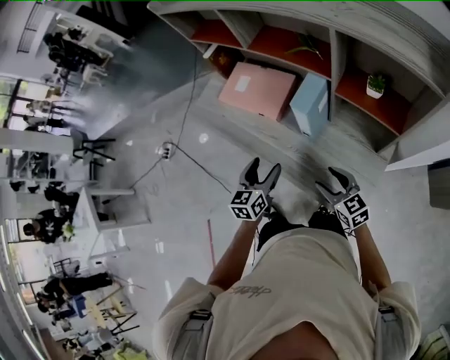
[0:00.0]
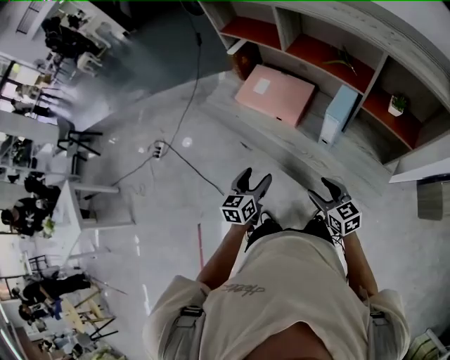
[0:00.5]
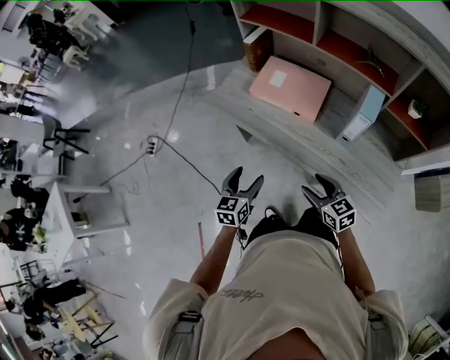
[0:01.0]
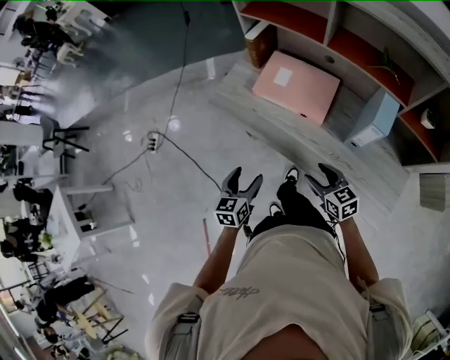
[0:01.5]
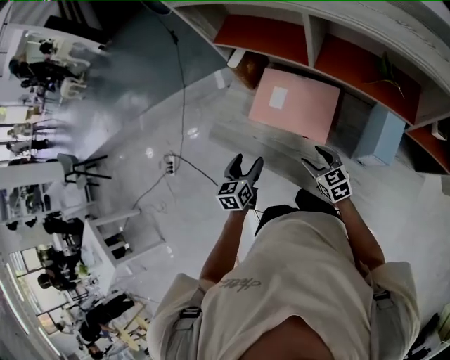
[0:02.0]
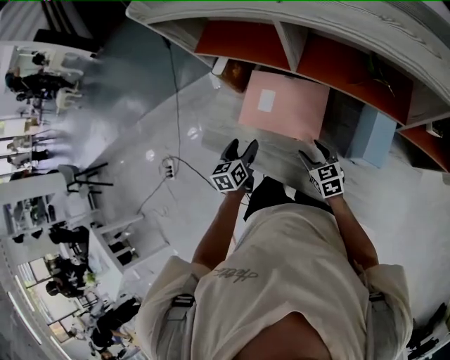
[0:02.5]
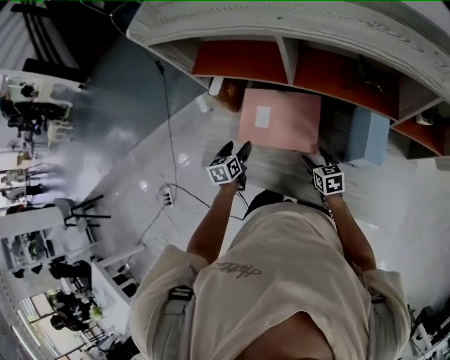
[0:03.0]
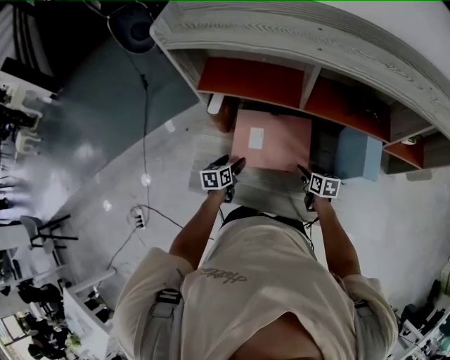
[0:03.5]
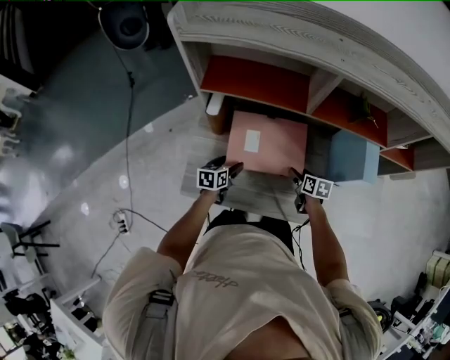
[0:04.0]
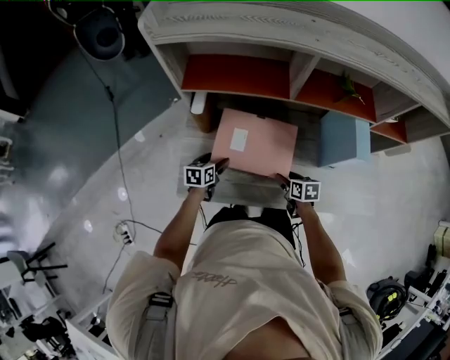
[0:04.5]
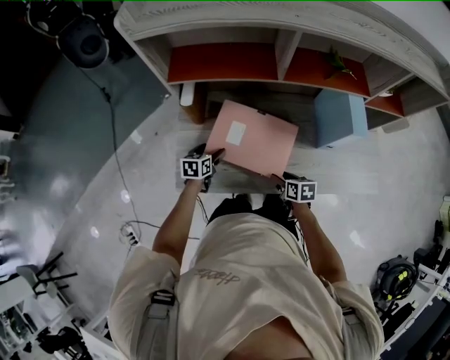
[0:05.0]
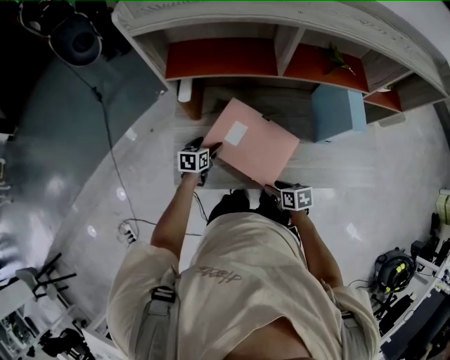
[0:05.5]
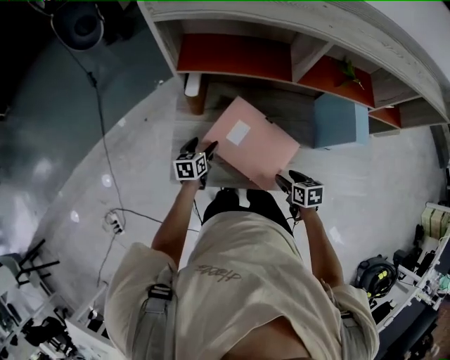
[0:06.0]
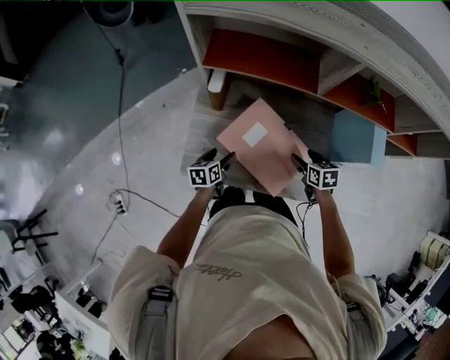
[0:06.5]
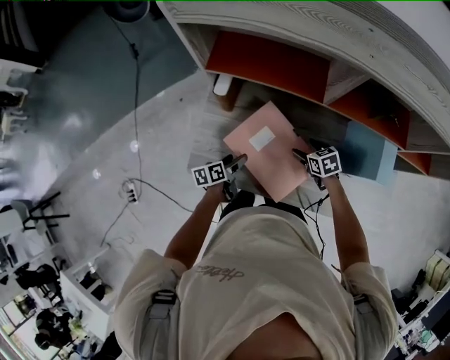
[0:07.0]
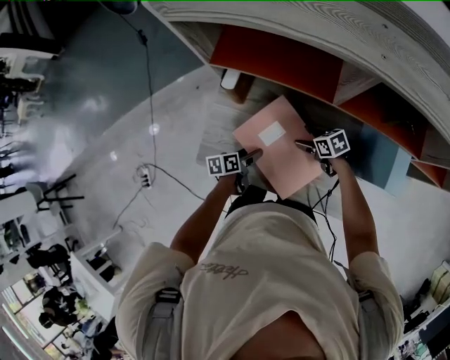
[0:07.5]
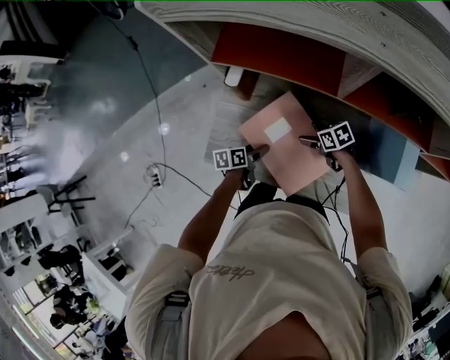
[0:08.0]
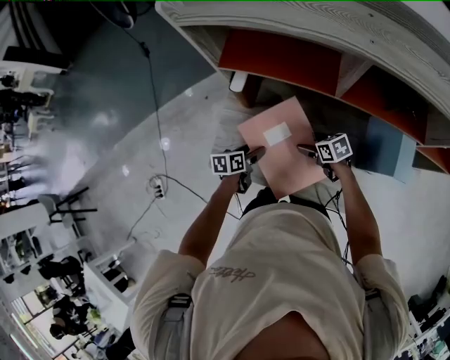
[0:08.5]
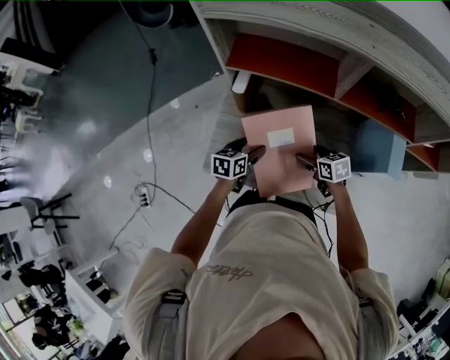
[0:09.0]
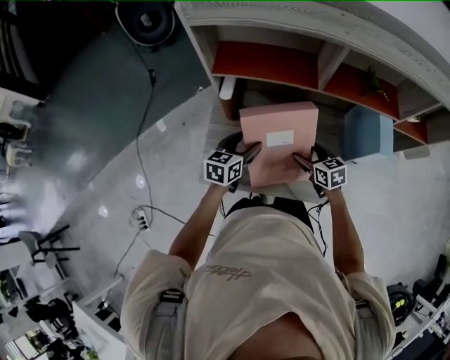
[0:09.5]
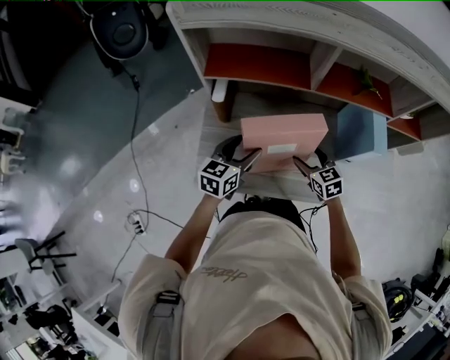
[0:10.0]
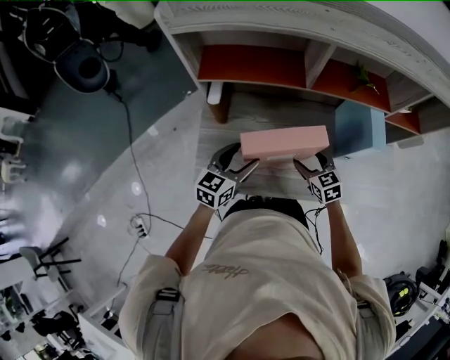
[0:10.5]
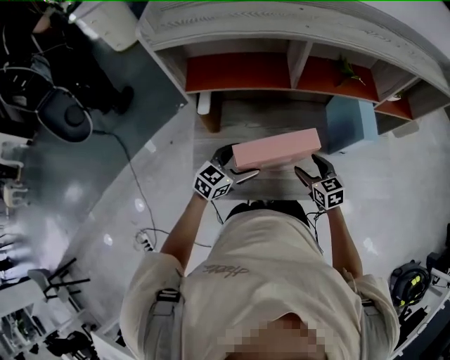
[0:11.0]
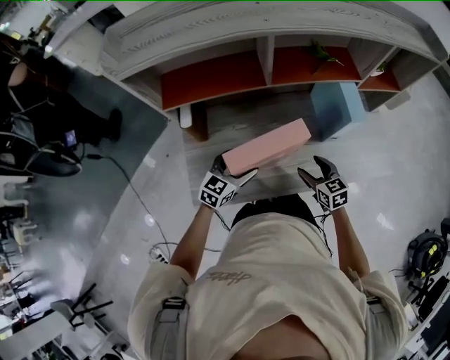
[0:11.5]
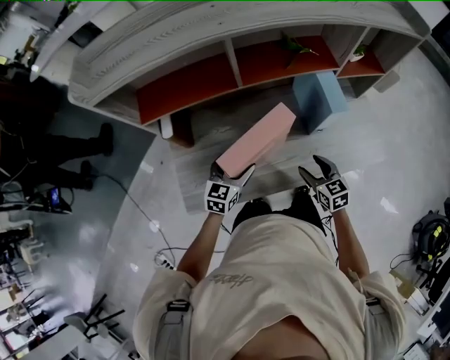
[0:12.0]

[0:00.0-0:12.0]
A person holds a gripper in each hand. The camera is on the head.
0:00.0 to 0:02.0: Both grippers move forward and to the left, some 30 cm.
0:02.0 to 0:04.0: The right gripper moves some 15 cm, and rolls clockwise, seen from behind, by approximately 50 degrees. Meanwhile the left gripper shifts by approximately 20 cm, and rotates approximately 40 degrees.
0:04.0 to 0:06.0: The right gripper heads backward, covering about 15 cm; the left gripper changes place by about 5 cm.
0:06.0 to 0:08.0: The right gripper goes approximately 20 cm forward, and rotates roughly 40 degrees. Meanwhile the left gripper travels backward by some 5 cm, and swivels approximately 30 degrees.
0:08.0 to 0:10.0: The right gripper is displaced upward by approximately 10 cm, and swivels some 40 degrees. The left gripper is displaced upward by some 20 cm, and twists some 50 degrees clockwise, seen from behind.
0:10.0 to 0:12.0: The right gripper goes some 15 cm to the right and backward, and swivels roughly 20 degrees. The left gripper heads to the right and downward, covering about 10 cm.

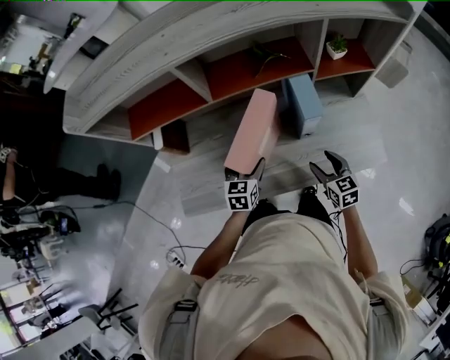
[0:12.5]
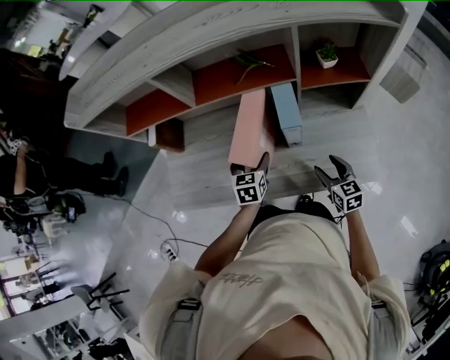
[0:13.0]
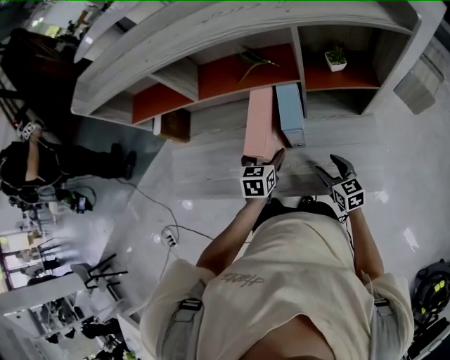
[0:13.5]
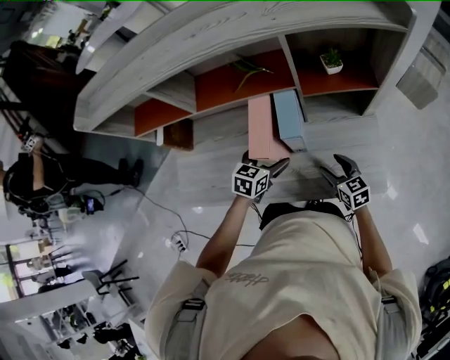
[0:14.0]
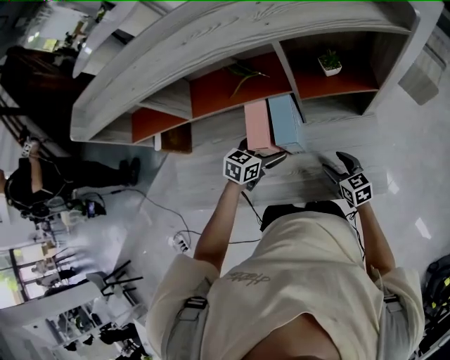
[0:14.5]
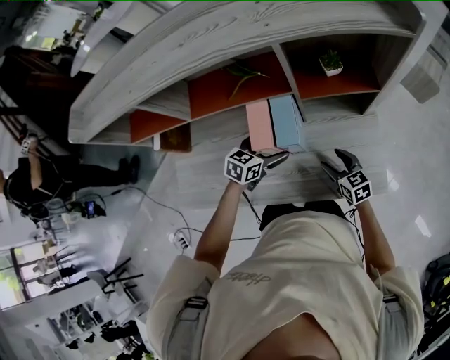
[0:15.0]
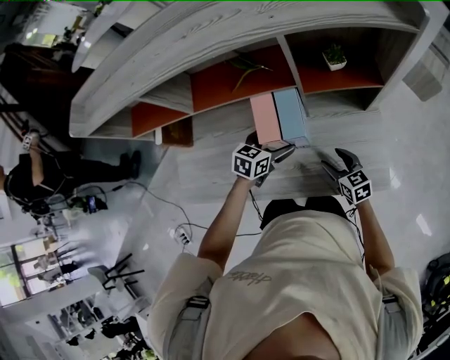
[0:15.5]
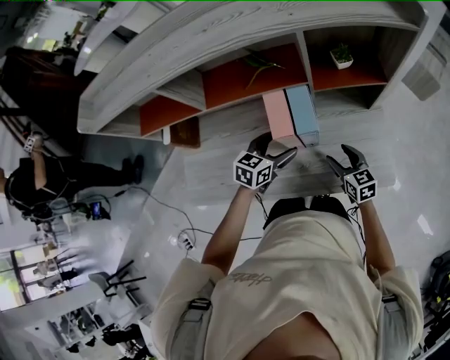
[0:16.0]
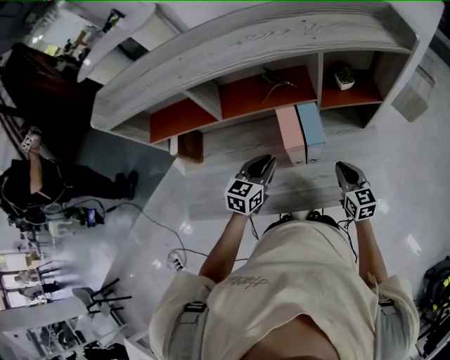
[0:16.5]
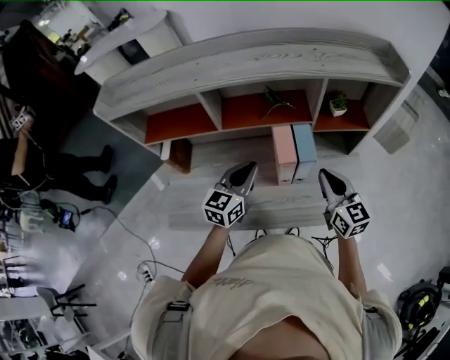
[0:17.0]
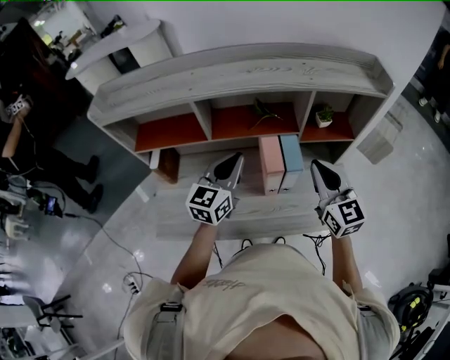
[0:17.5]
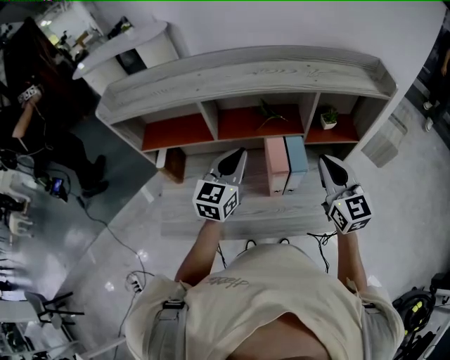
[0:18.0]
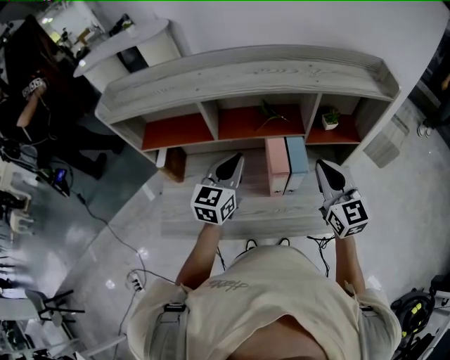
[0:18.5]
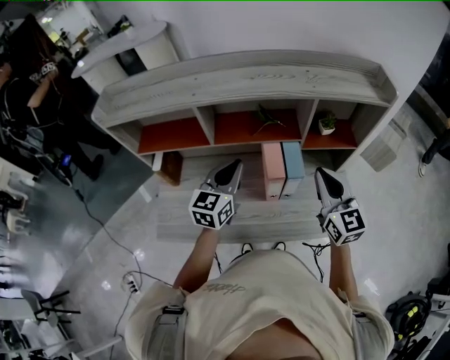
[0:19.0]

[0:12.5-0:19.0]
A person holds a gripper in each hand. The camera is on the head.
0:12.5 to 0:14.5: The grippers both shift to the right and forward by about 15 cm. The left gripper turns by approximately 20 degrees.
0:14.5 to 0:17.0: The left gripper moves upward and to the left, some 20 cm, turns by about 30 degrees, and closes its fingers, while the right gripper goes approximately 25 cm upward, rotates some 30 degrees, and closes its fingers.
0:17.0 to 0:19.0: The two grippers go some 5 cm upward.

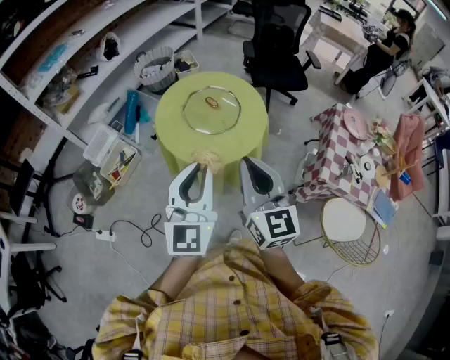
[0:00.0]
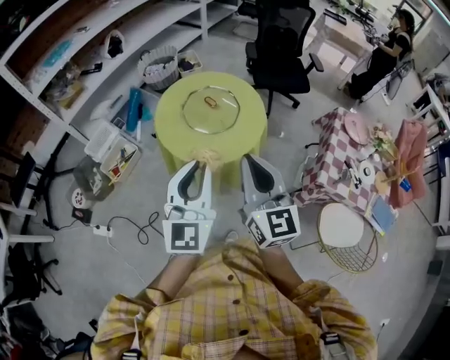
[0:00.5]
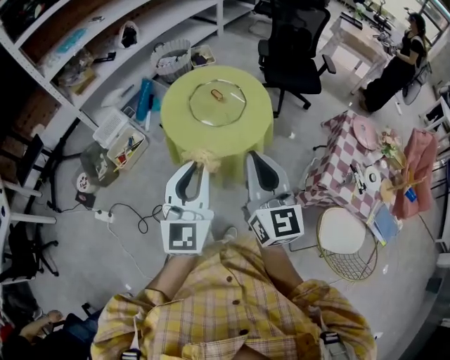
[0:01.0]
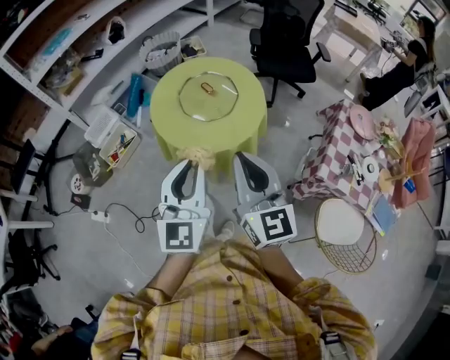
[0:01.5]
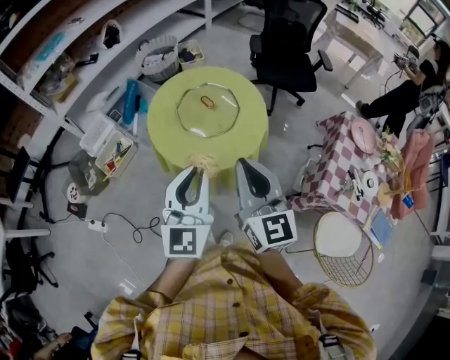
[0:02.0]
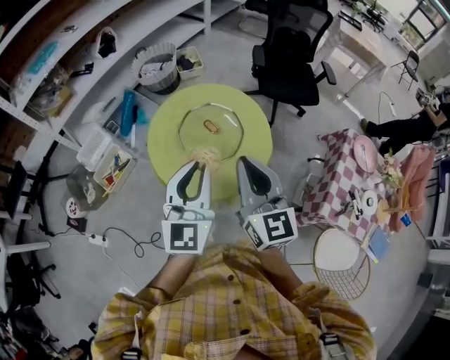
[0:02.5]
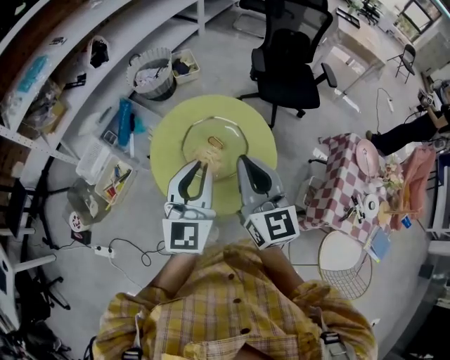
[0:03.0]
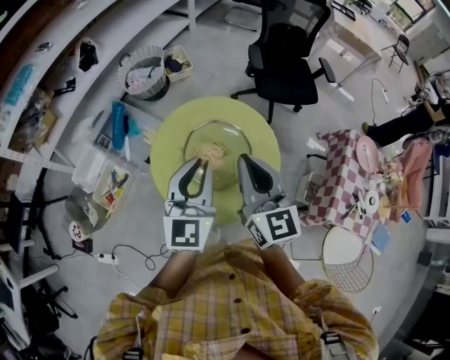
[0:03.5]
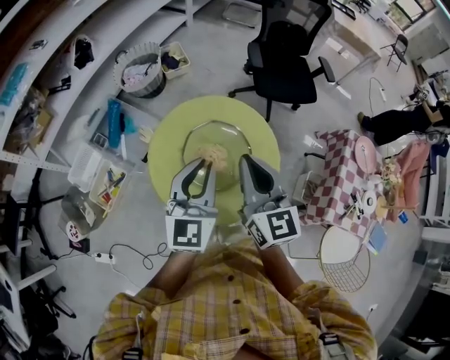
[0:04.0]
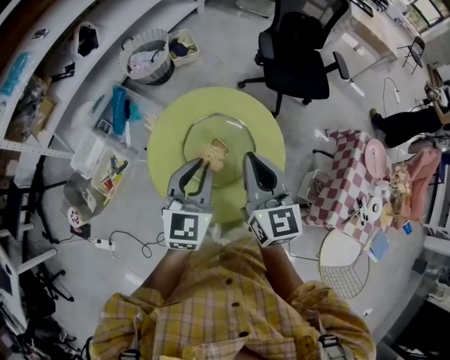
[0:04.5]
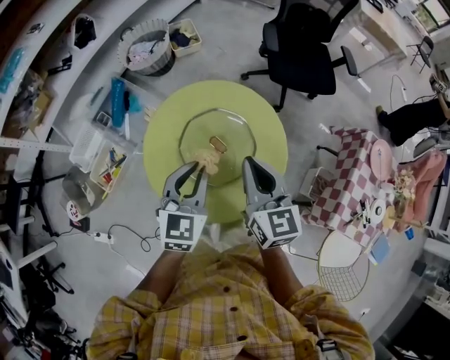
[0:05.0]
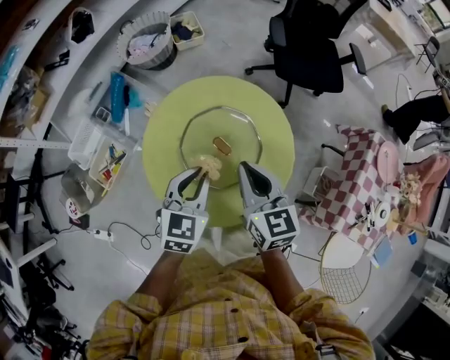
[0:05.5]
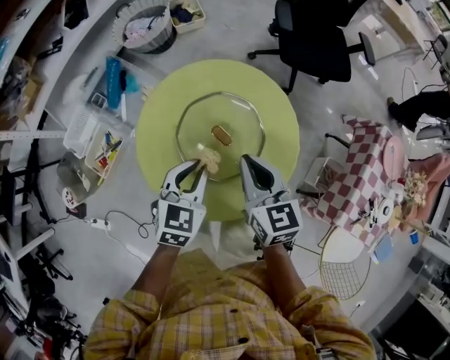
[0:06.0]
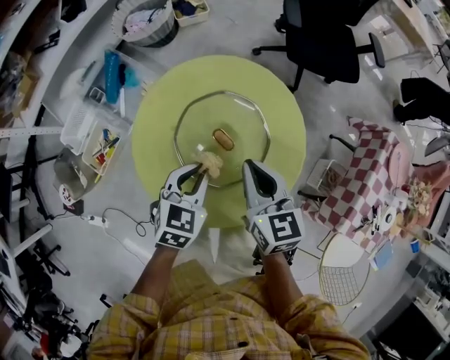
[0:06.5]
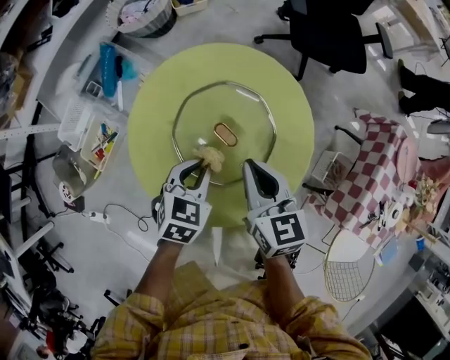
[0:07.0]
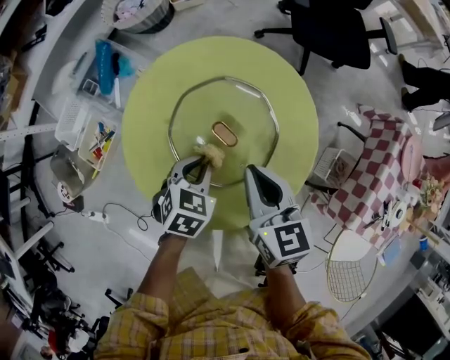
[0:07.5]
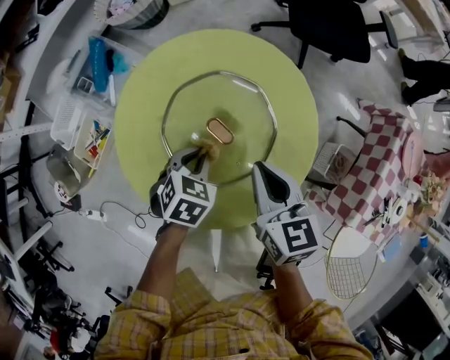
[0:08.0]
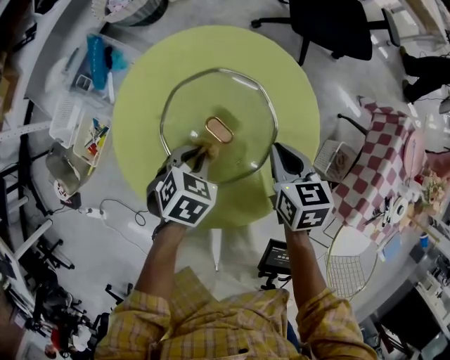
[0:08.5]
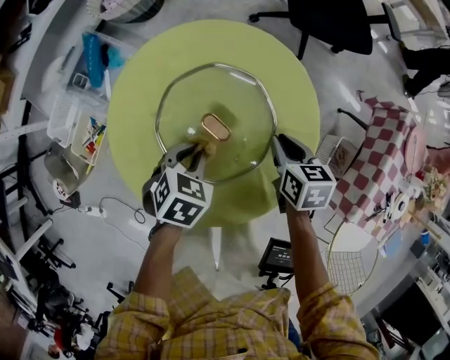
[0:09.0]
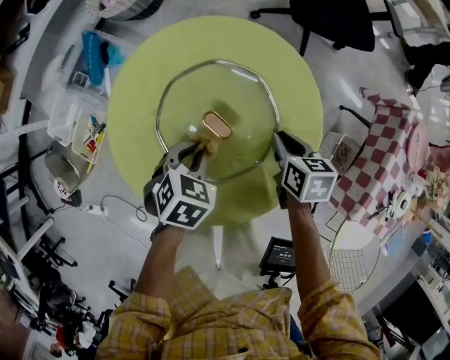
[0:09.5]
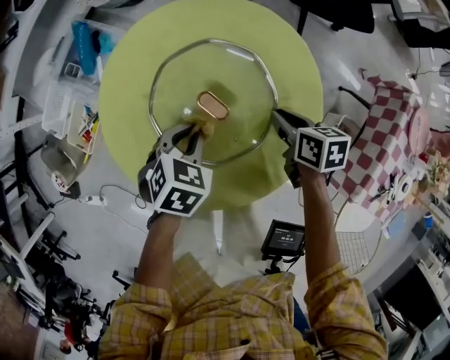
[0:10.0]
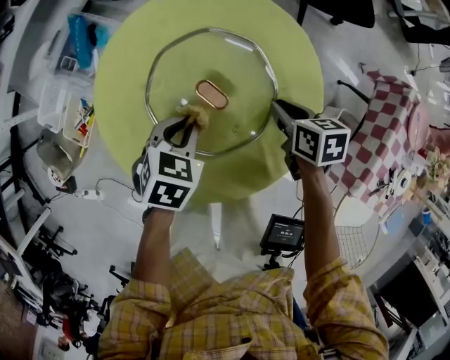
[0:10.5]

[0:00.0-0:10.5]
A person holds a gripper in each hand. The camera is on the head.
0:00.0 to 0:02.0: The right gripper is displaced forward by some 5 cm. The left gripper shifts roughly 10 cm forward and to the right.
0:02.0 to 0:04.0: Both grippers travel together forward, about 30 cm.
0:04.0 to 0:06.5: Both grippers travel together downward, approximately 25 cm. The right gripper rotates about 20 degrees. The left gripper points its fingers some 40 degrees further downward.
0:06.5 to 0:08.5: The right gripper heads downward and to the right, covering some 15 cm, and changes its angle by roughly 20 degrees. The left gripper travels downward by approximately 10 cm, and rotates roughly 20 degrees.
0:08.5 to 0:10.5: The right gripper travels downward by about 5 cm.
